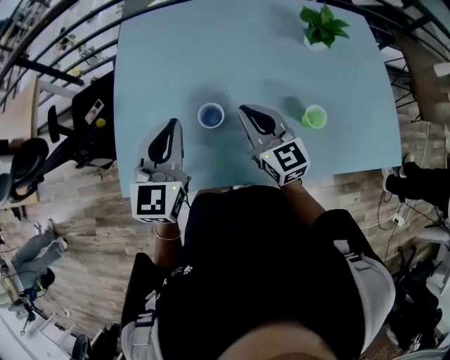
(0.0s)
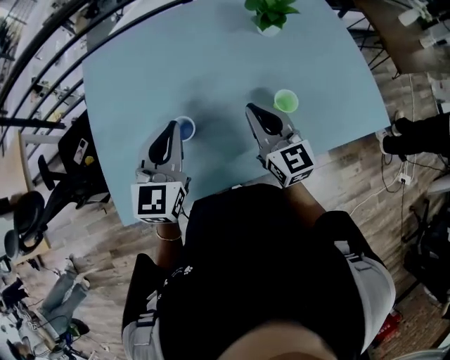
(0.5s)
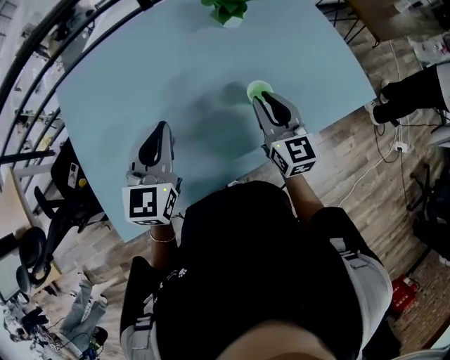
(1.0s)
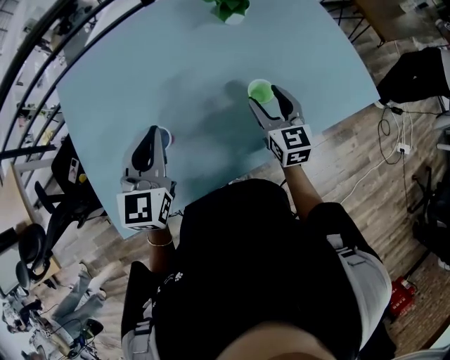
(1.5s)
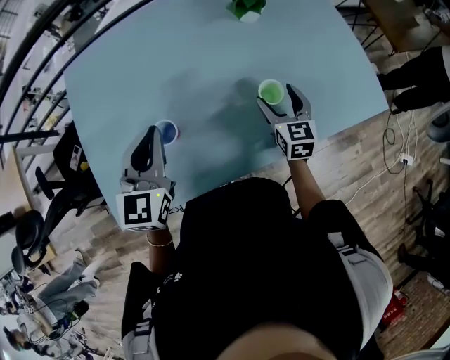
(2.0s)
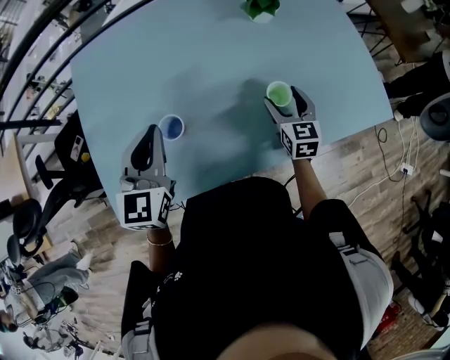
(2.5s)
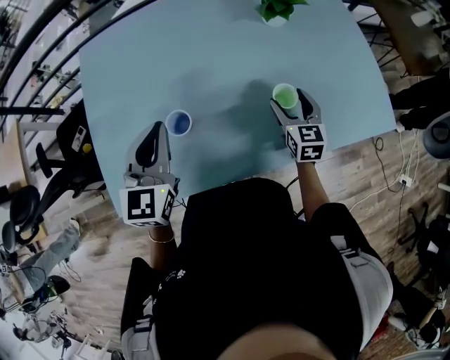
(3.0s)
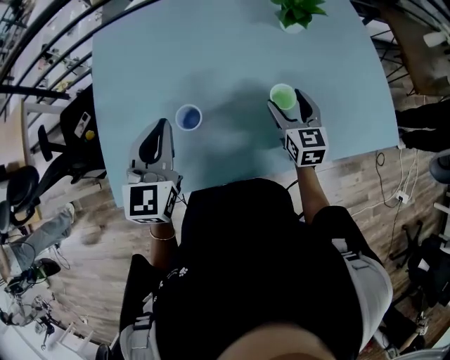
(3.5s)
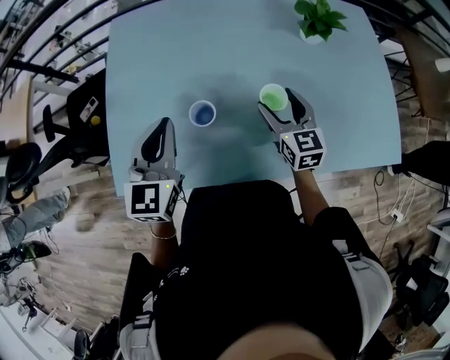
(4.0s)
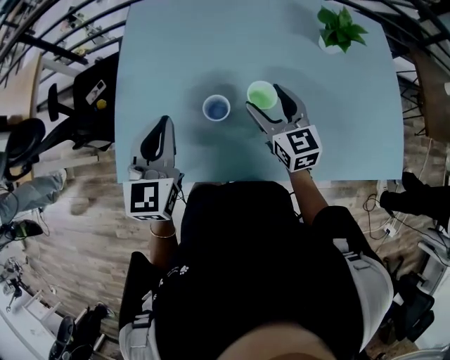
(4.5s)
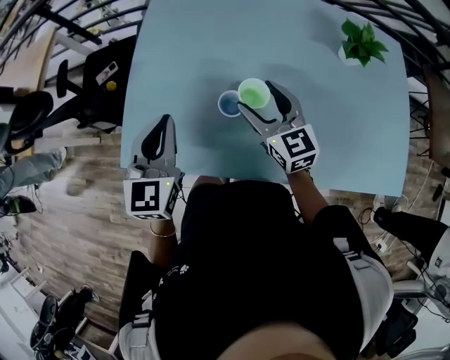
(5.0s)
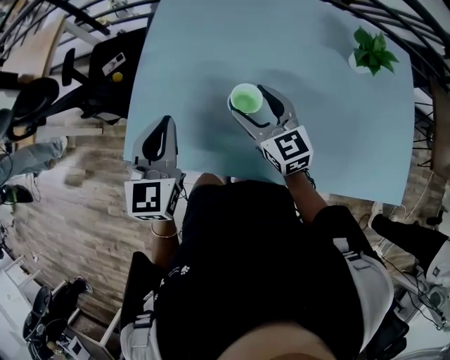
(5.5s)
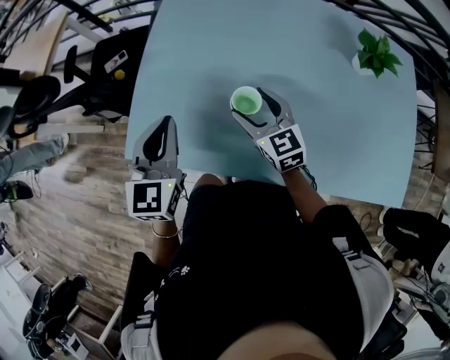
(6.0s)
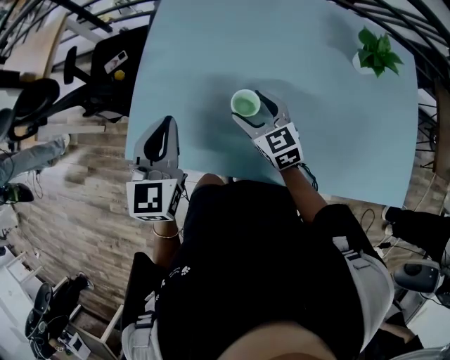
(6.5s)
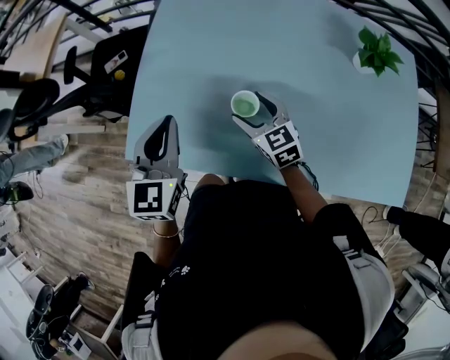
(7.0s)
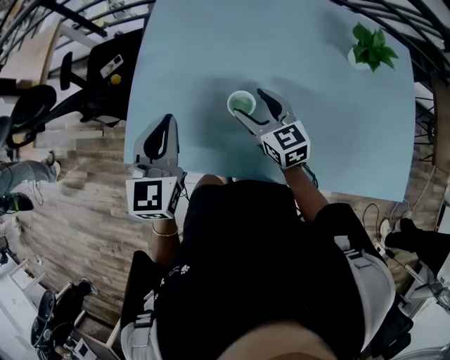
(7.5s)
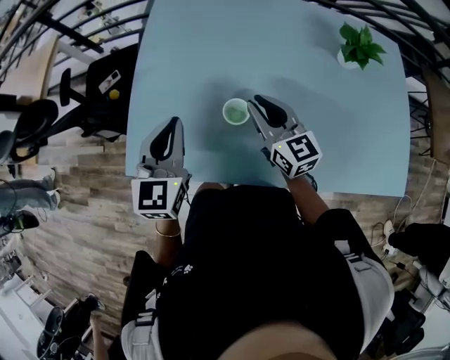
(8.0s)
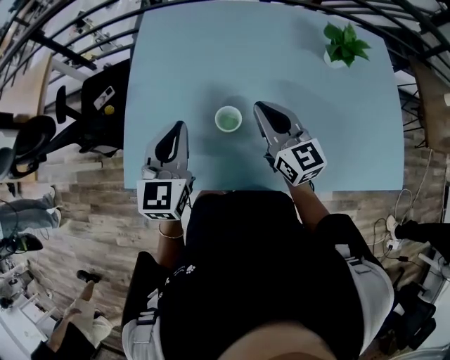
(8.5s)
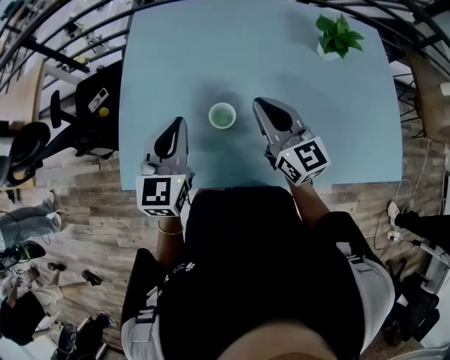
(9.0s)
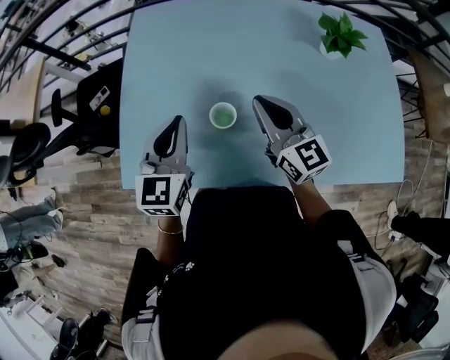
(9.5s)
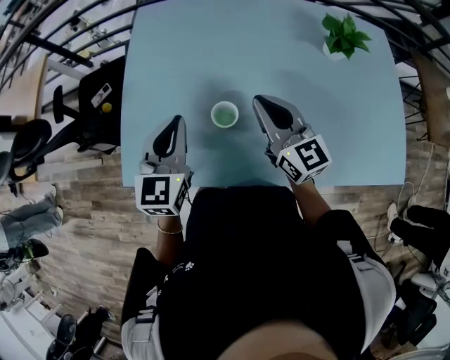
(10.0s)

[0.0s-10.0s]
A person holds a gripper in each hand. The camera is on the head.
0.0s to 2.0s: The right gripper ends up some 25 cm from where it was, rotates approximately 40 degrees, and opens; the left gripper changes place by approximately 10 cm.
2.0s to 4.0s: The left gripper heads to the left, covering some 10 cm. The right gripper travels to the left by some 15 cm, and rotates about 20 degrees.
4.0s to 6.0s: The left gripper travels to the left by approximately 10 cm; the right gripper moves to the left, approximately 20 cm, and rotates some 30 degrees.
6.0s to 8.0s: The right gripper moves approximately 5 cm, and closes.
8.0s to 10.0s: The right gripper ends up about 5 cm from where it was.

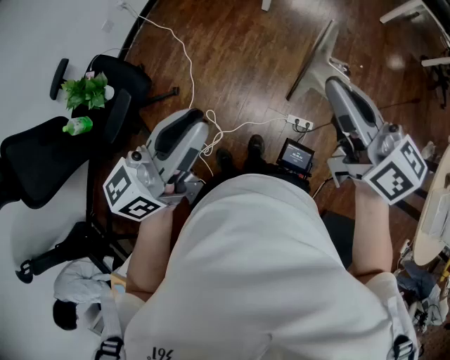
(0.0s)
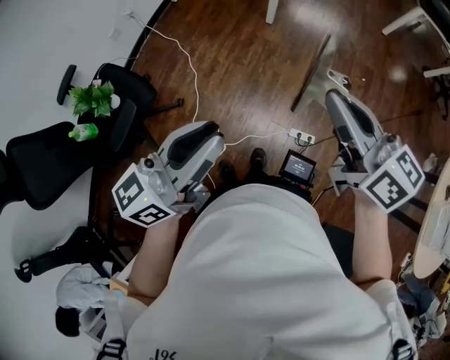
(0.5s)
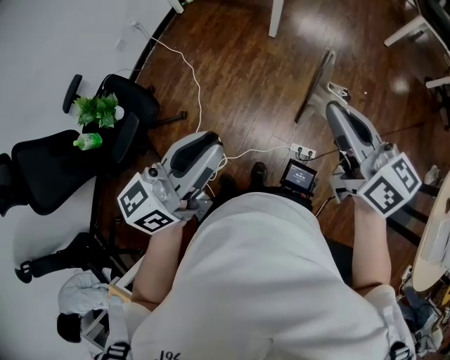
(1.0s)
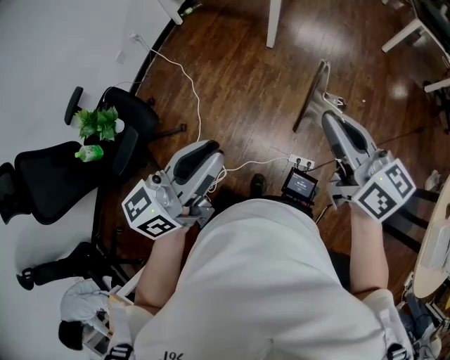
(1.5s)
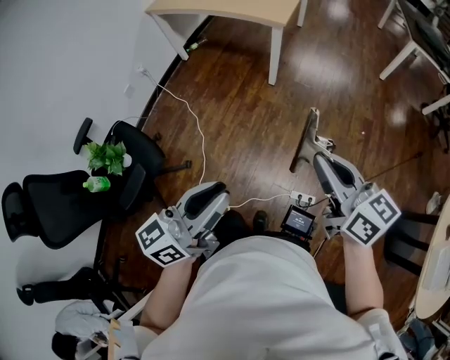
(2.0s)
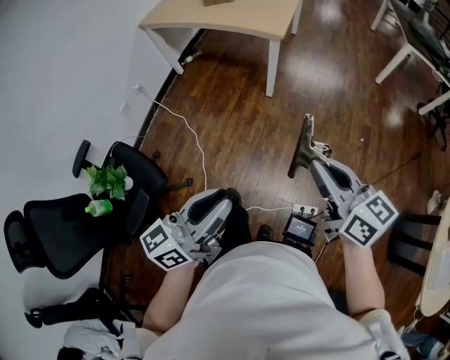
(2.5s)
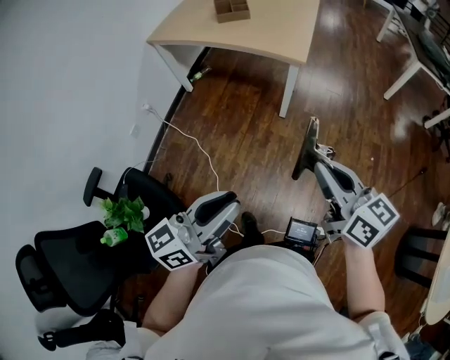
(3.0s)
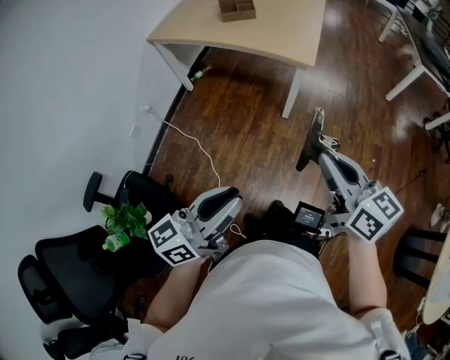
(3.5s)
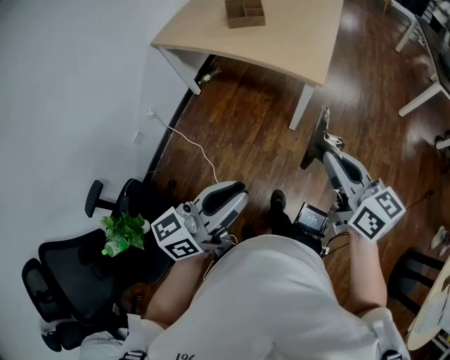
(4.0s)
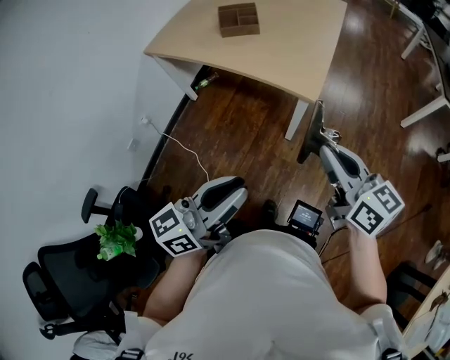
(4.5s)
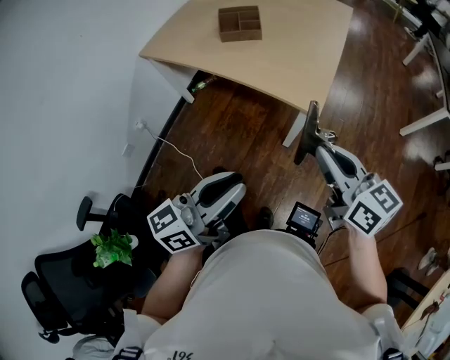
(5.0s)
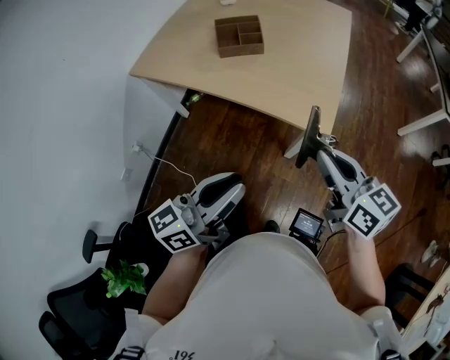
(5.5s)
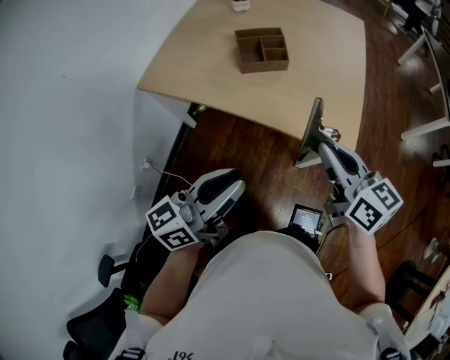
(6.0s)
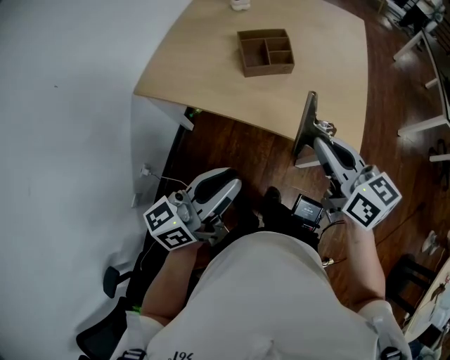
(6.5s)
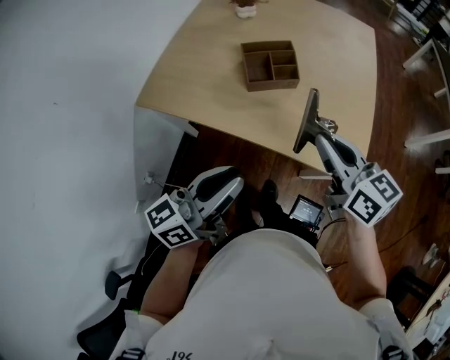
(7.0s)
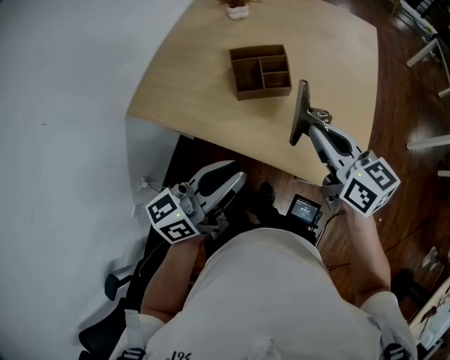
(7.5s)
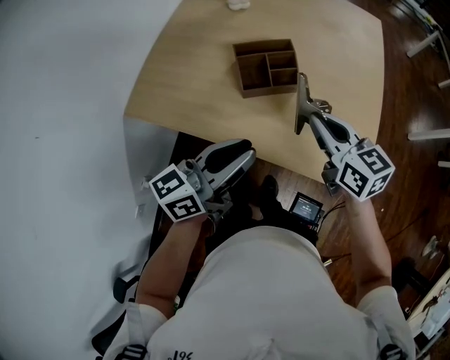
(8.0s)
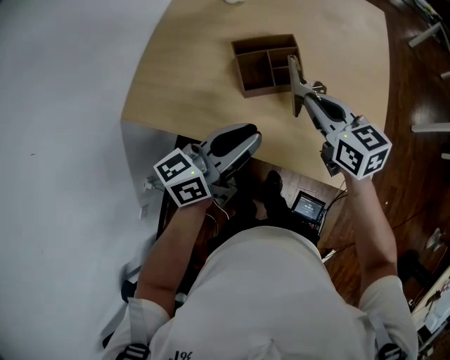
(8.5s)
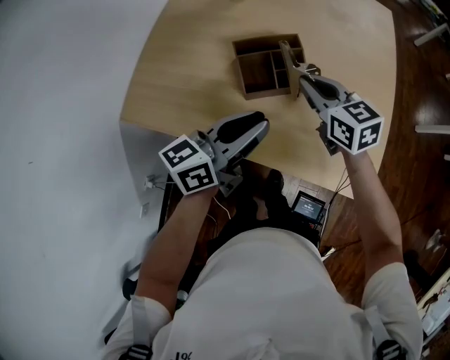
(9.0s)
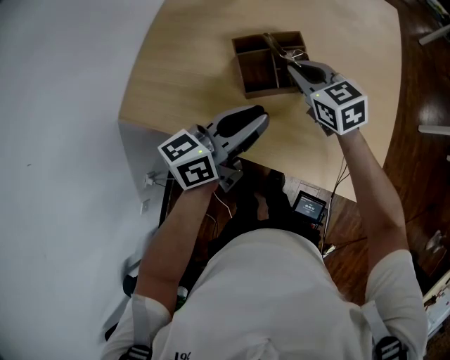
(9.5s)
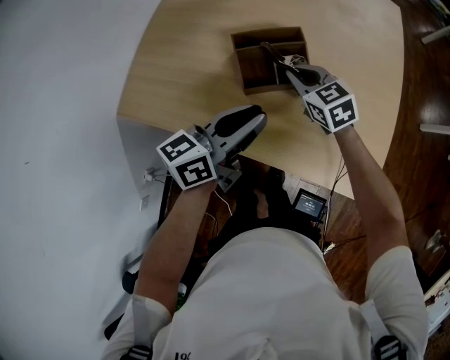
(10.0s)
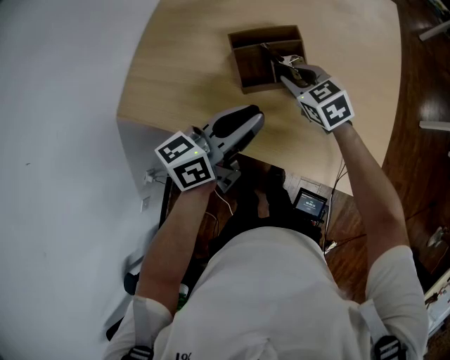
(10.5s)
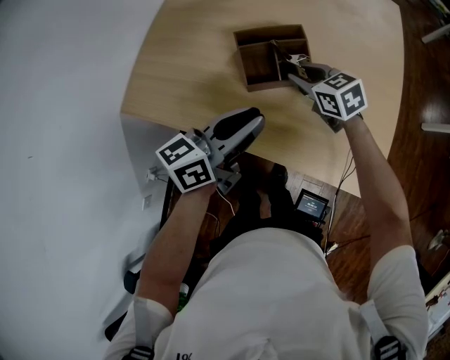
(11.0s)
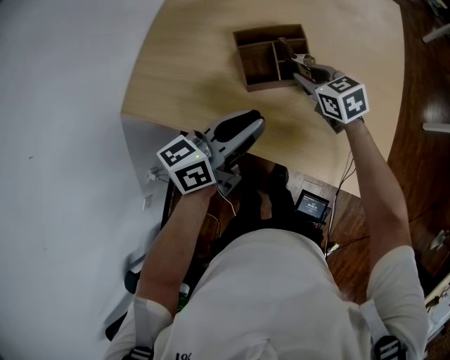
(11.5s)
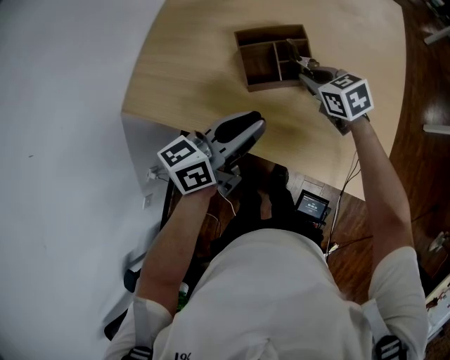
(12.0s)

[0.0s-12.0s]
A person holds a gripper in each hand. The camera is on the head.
0.0s to 2.0s: Both grippers move forward and to the right, some 10 cm.
2.0s to 4.0s: Both grippers move forward, about 35 cm.
4.0s to 6.0s: The two grippers go roughly 40 cm forward and to the left.
6.0s to 8.0s: The two grippers go some 25 cm forward.
8.0s to 10.0s: The left gripper goes about 10 cm forward; the right gripper goes about 20 cm forward, downward and to the left, and rotates some 20 degrees.
10.0s to 12.0s: There are only small adjustments of the grippers.

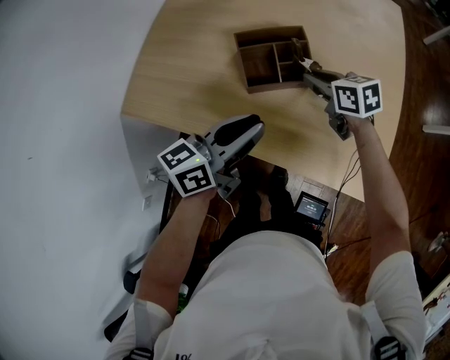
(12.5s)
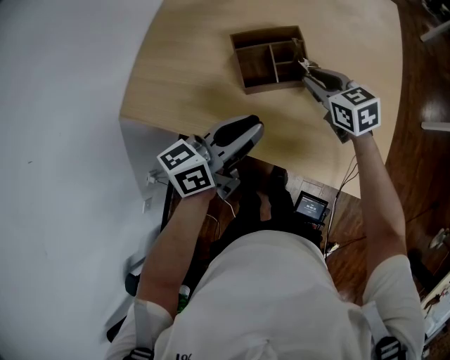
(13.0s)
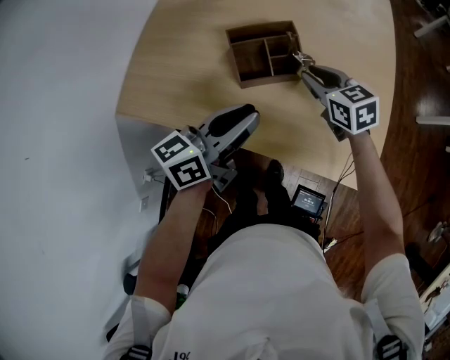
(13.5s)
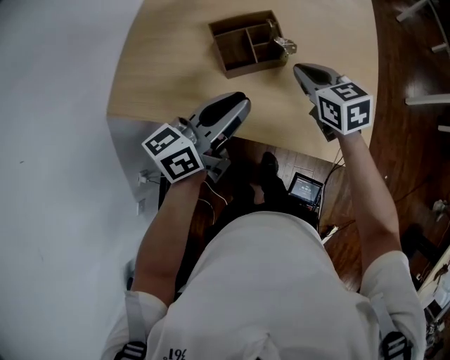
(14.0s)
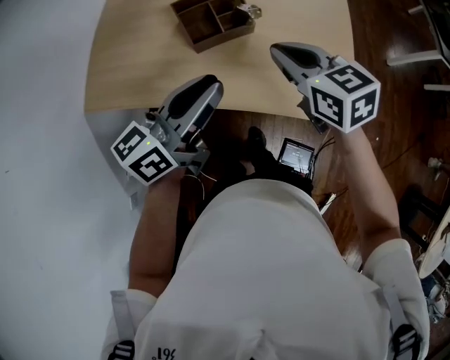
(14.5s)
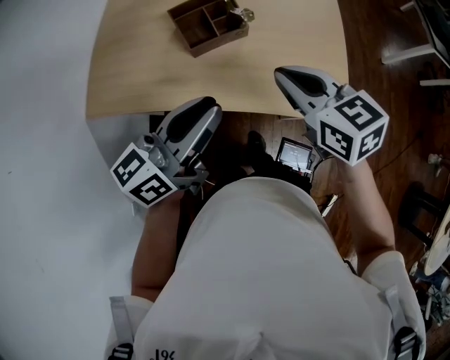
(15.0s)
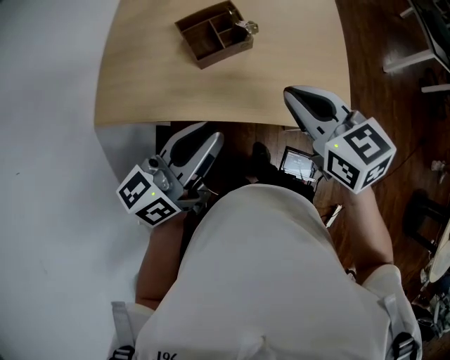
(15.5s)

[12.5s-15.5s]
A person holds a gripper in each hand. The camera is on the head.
12.5s to 14.0s: The right gripper moves backward, some 5 cm.
14.0s to 15.5s: The right gripper moves backward and upward, approximately 20 cm, while the left gripper goes roughly 15 cm backward and upward.

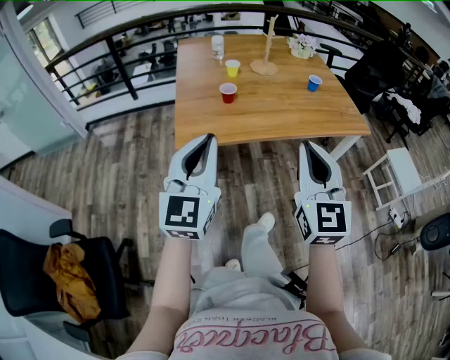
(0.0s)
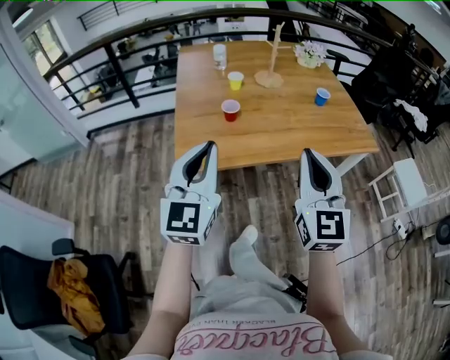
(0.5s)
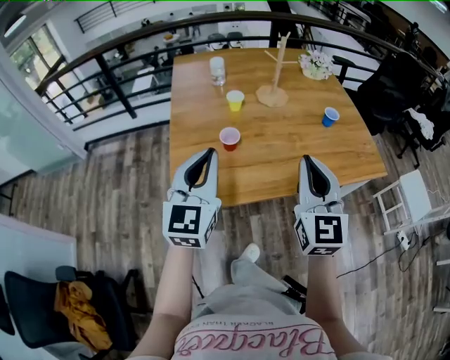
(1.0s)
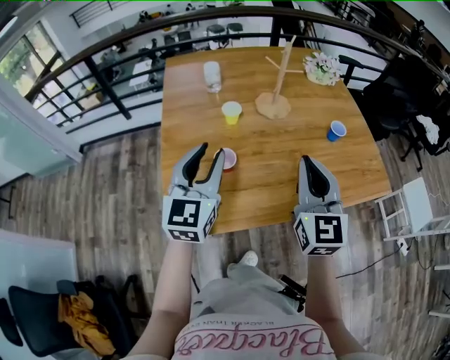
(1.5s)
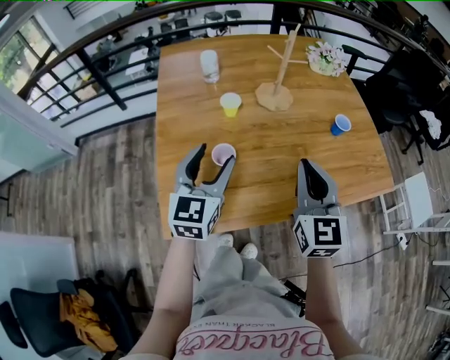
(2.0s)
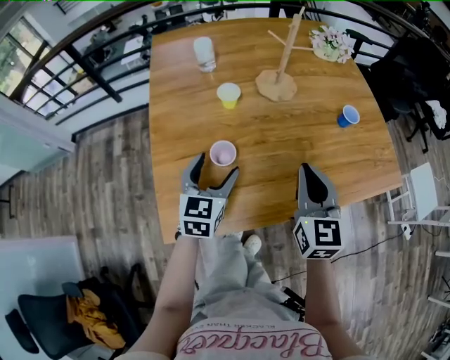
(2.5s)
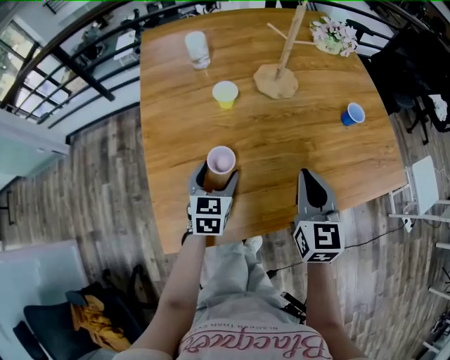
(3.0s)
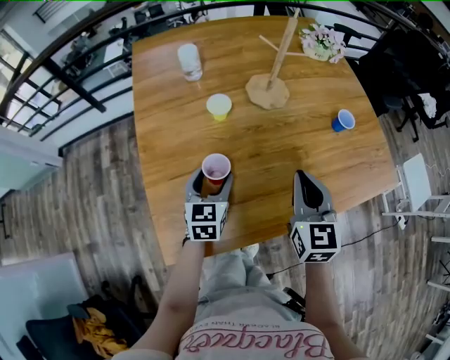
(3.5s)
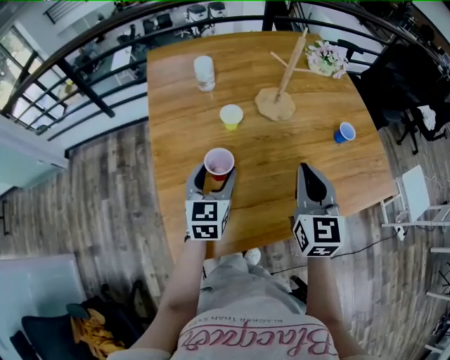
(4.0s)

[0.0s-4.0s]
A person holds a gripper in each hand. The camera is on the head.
0.0s to 2.0s: The grippers both shift forward by approximately 35 cm. The left gripper opens.
2.0s to 4.0s: The right gripper shifts approximately 5 cm forward, and reaches about 10 cm downward, then returns, while the left gripper heads downward and forward, covering about 10 cm.
